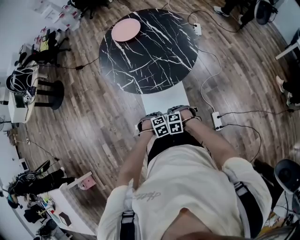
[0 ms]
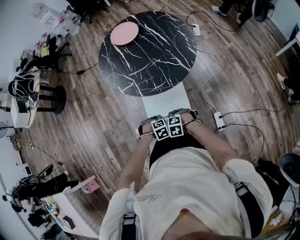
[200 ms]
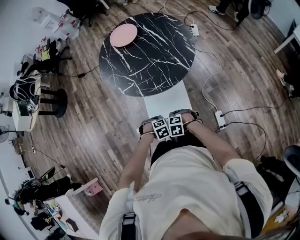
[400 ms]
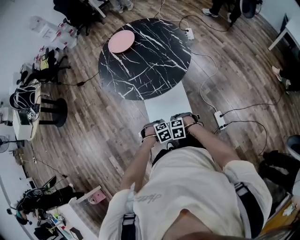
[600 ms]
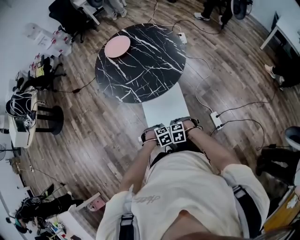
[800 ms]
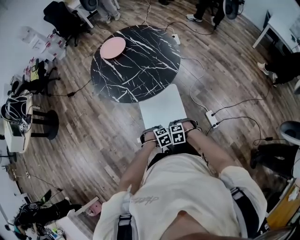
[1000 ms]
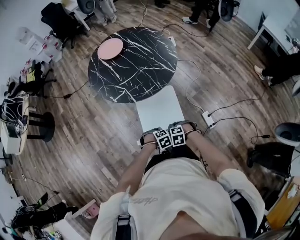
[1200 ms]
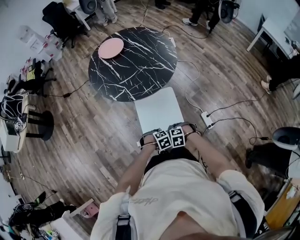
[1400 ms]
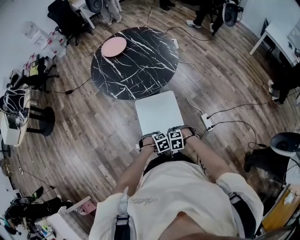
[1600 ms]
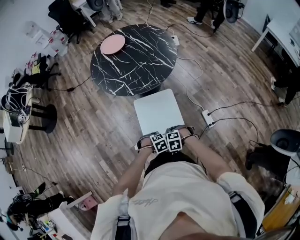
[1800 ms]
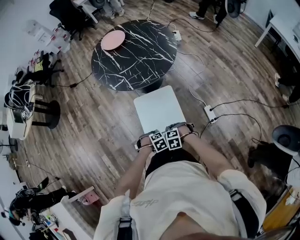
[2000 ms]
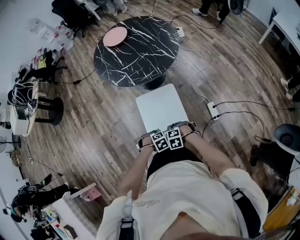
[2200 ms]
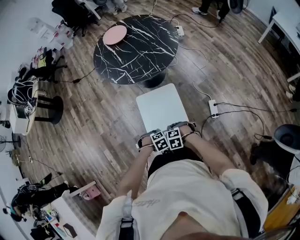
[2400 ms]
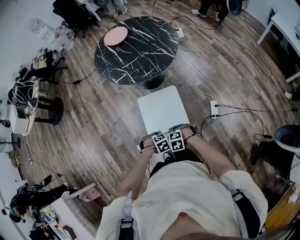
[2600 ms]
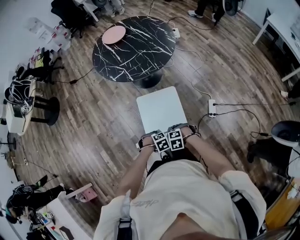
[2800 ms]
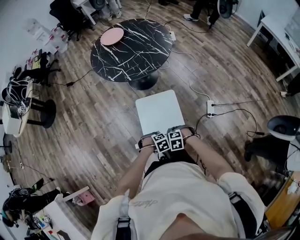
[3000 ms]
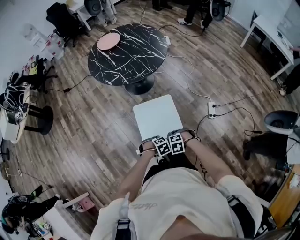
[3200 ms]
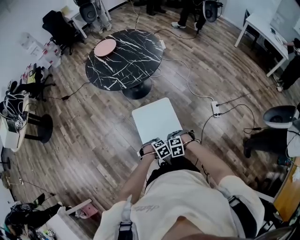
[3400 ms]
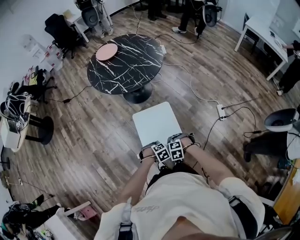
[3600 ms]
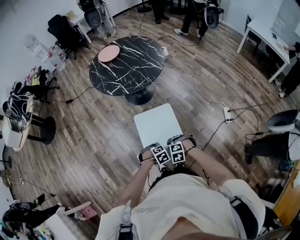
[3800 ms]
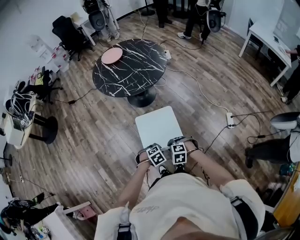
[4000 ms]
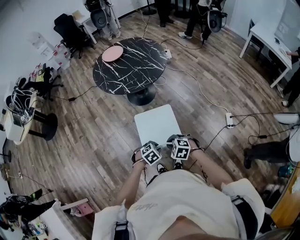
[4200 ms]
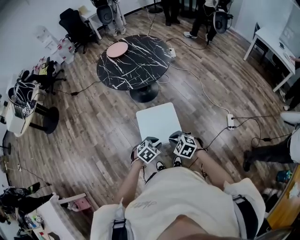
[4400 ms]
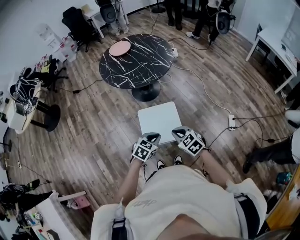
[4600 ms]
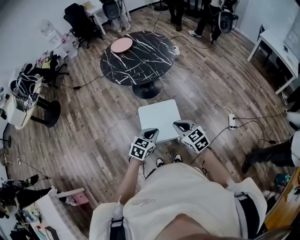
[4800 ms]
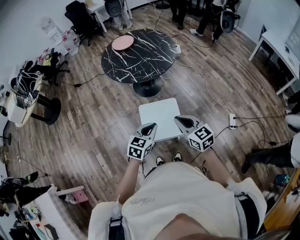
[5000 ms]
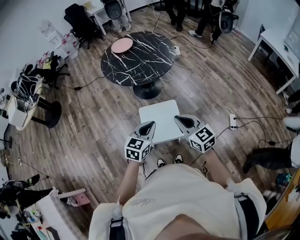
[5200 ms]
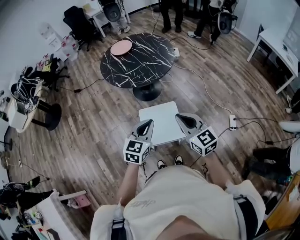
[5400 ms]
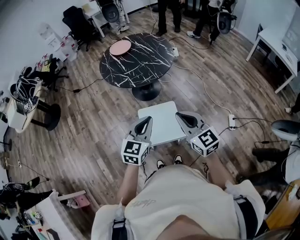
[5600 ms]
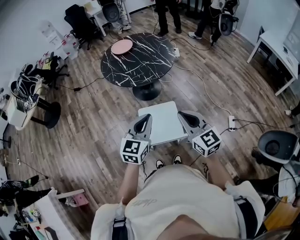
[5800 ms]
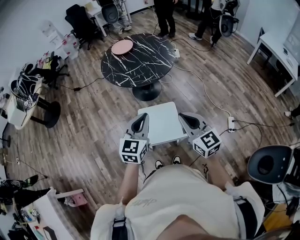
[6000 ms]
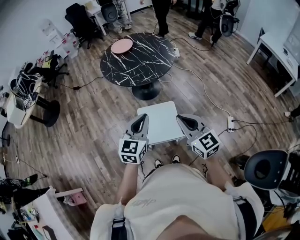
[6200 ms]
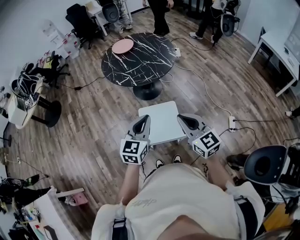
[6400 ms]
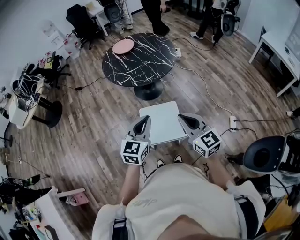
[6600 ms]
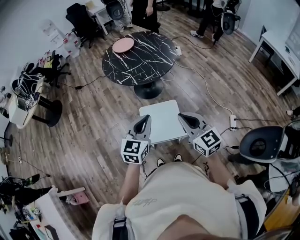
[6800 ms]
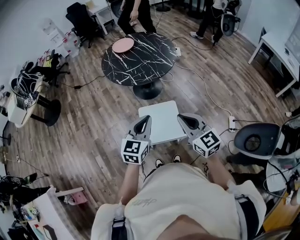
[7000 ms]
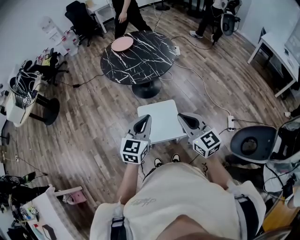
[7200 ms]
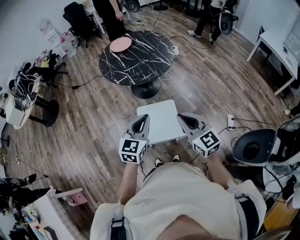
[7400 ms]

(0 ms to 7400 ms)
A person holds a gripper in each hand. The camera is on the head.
0 ms - 1400 ms: The left gripper shifts by some 15 cm, while the right gripper moves roughly 15 cm.
1400 ms - 3000 ms: The right gripper changes place by roughly 20 cm. The left gripper moves about 20 cm.
3000 ms - 4400 ms: Both grippers move upward, about 15 cm. The right gripper rotates about 30 degrees. The left gripper rotates approximately 30 degrees.
4400 ms - 6000 ms: The two grippers go roughly 25 cm upward. The left gripper tilts its fingers approximately 50 degrees upward; the right gripper angles its fingers upward, by about 50 degrees.
6000 ms - 7400 ms: The grippers stay close to where they were, moving slightly.

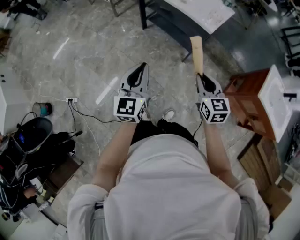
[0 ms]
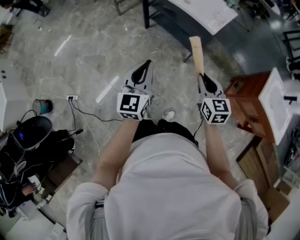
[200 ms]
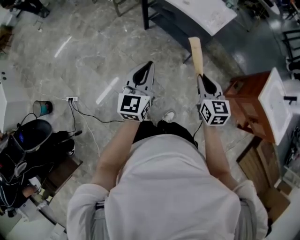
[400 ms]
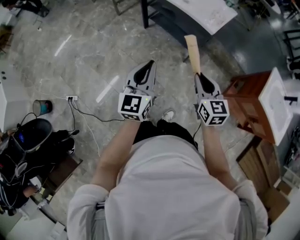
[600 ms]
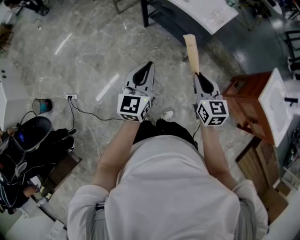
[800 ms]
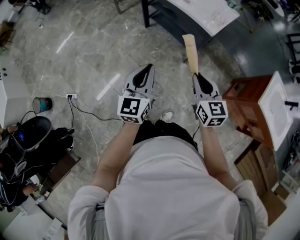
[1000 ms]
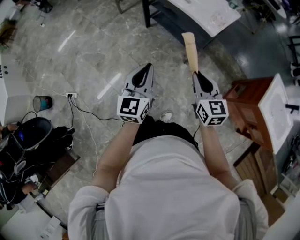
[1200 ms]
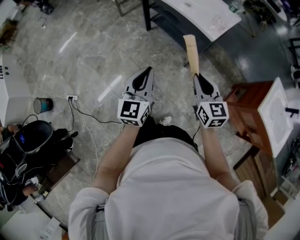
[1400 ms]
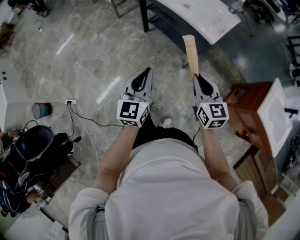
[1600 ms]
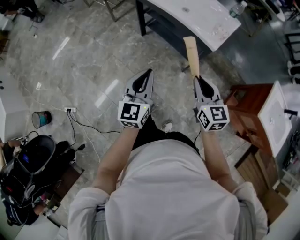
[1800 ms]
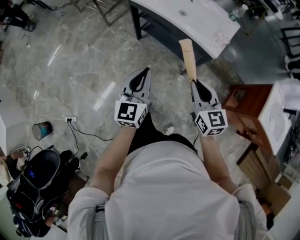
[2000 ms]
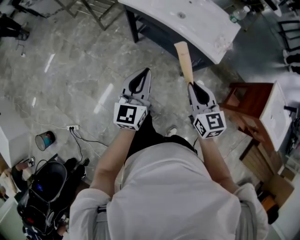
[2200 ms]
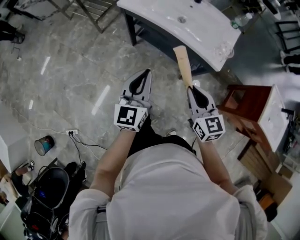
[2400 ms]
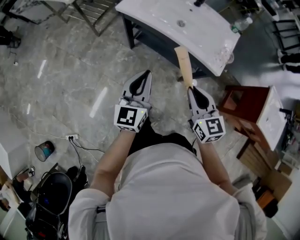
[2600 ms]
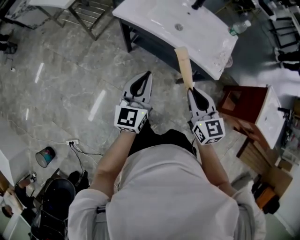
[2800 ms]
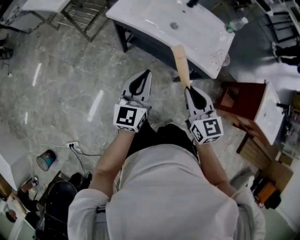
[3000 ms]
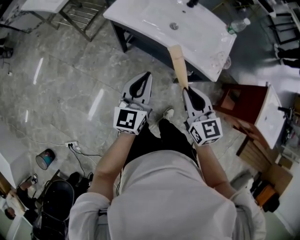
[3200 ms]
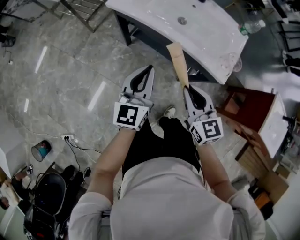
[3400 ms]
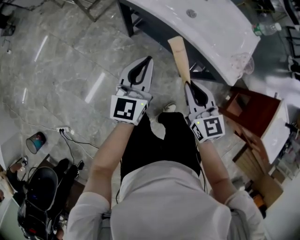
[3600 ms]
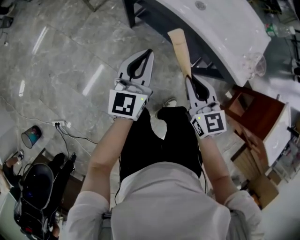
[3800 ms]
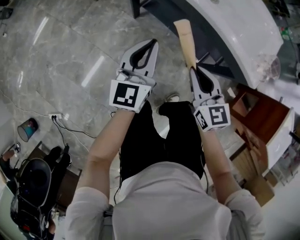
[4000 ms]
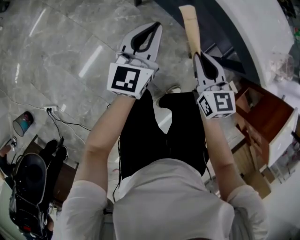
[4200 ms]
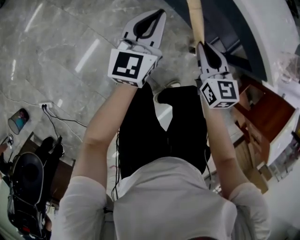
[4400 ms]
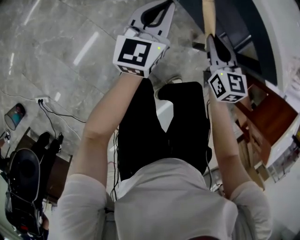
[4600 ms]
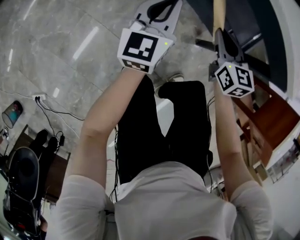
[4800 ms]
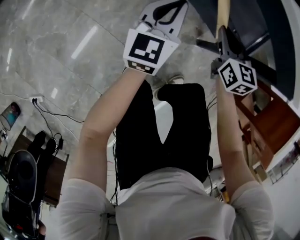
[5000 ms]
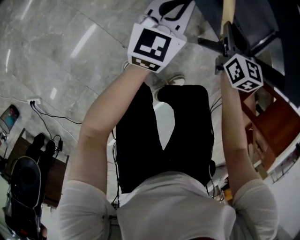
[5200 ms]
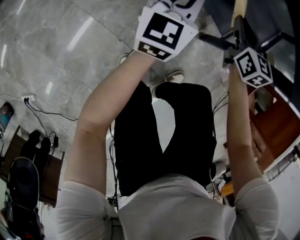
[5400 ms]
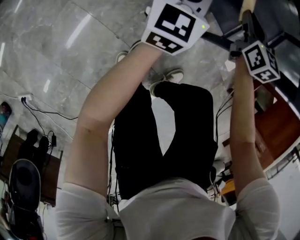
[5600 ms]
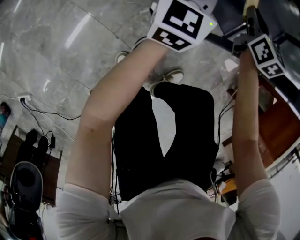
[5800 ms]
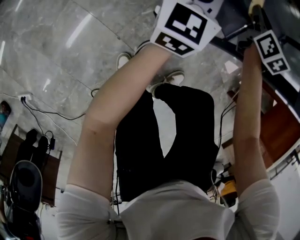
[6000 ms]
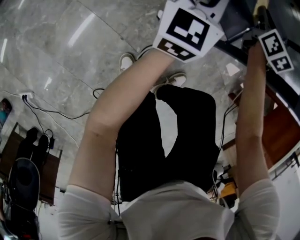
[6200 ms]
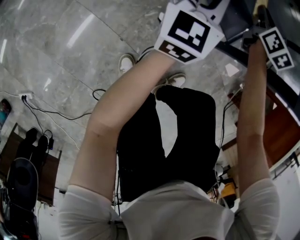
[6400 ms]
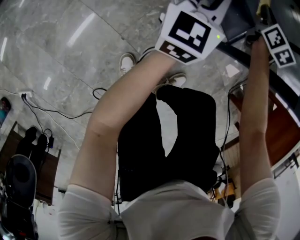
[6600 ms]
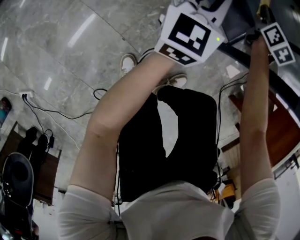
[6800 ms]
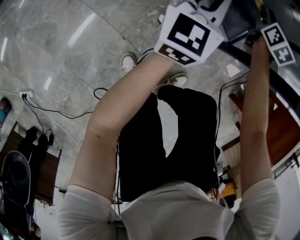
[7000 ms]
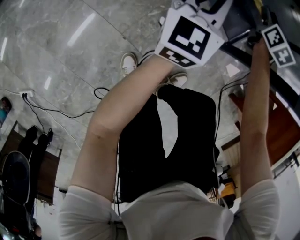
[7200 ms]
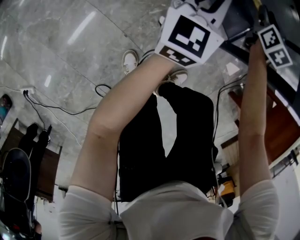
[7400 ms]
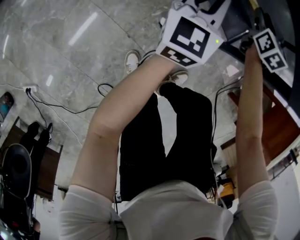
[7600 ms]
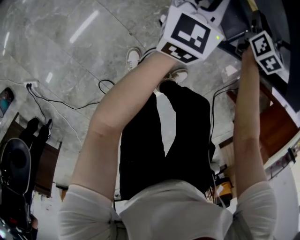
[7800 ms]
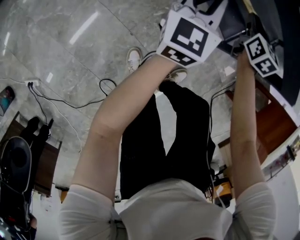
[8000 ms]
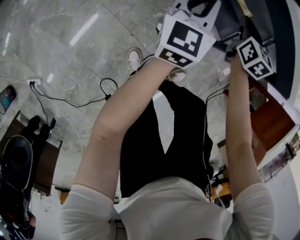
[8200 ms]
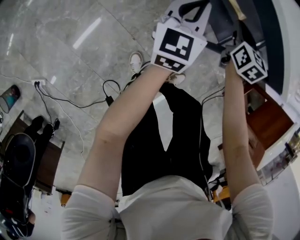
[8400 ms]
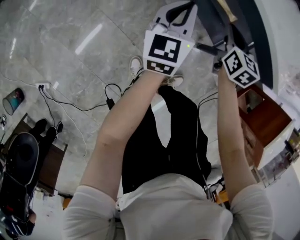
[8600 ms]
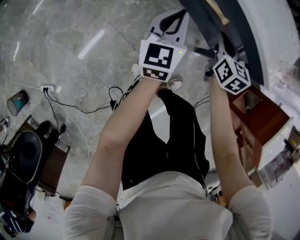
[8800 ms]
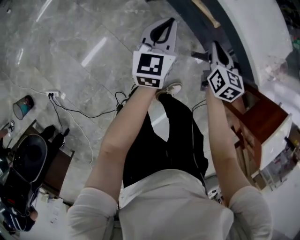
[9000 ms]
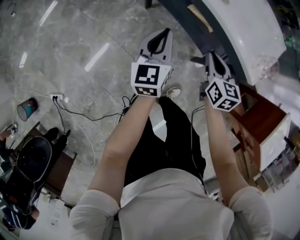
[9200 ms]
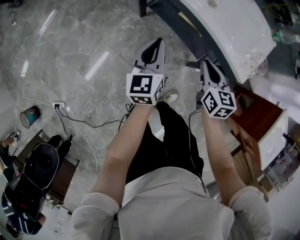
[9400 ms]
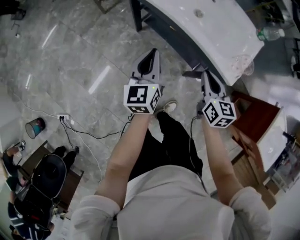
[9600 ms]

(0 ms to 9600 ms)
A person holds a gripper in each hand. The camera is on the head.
0 ms - 1600 ms: The two grippers go some 10 cm forward.
1600 ms - 3200 ms: The left gripper heads forward, covering approximately 30 cm, while the right gripper shifts roughly 25 cm forward and to the left.
3200 ms - 4800 ms: The two grippers go roughly 35 cm downward.
4800 ms - 6400 ms: The right gripper moves forward and downward, about 20 cm; the left gripper is displaced downward, to the right and forward by some 10 cm.
6400 ms - 8000 ms: The left gripper is displaced upward by some 5 cm. Meanwhile the right gripper moves backward and upward, some 10 cm, and opens, then closes again.
8000 ms - 9600 ms: The left gripper goes approximately 25 cm upward, while the right gripper heads upward and backward, covering some 30 cm.

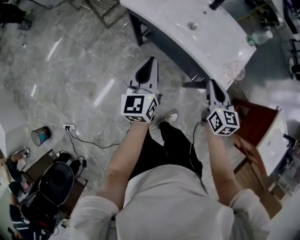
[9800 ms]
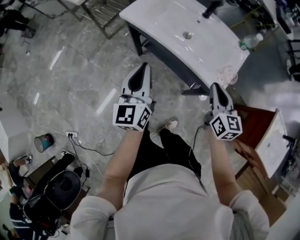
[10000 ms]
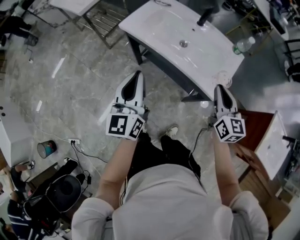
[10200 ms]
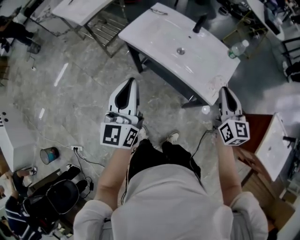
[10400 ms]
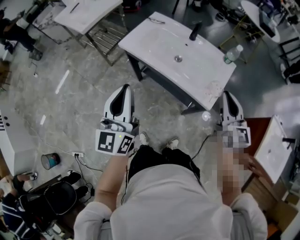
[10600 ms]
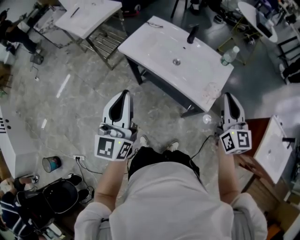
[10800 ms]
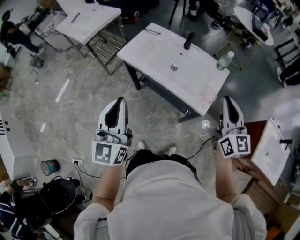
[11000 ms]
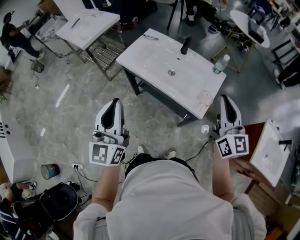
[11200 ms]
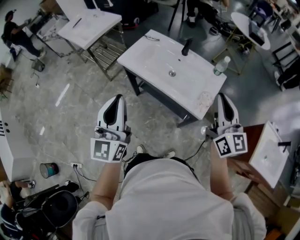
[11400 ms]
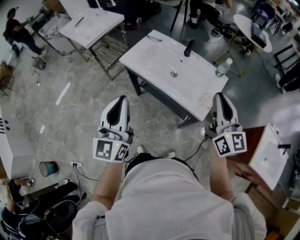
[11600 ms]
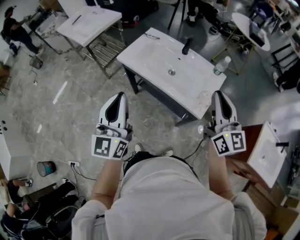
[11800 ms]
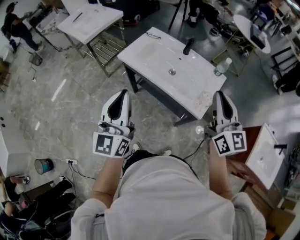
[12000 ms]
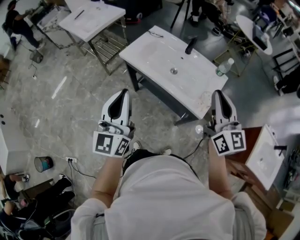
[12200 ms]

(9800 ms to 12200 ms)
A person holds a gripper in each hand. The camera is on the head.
9800 ms - 11000 ms: Both grippers travel together upward, approximately 25 cm. The left gripper rotates approximately 20 degrees, while the right gripper turns by some 30 degrees.
11000 ms - 12200 ms: The right gripper shifts roughly 5 cm to the left.

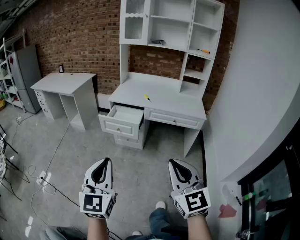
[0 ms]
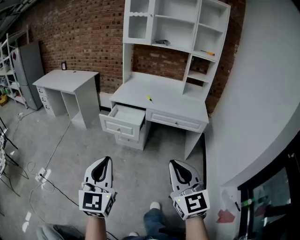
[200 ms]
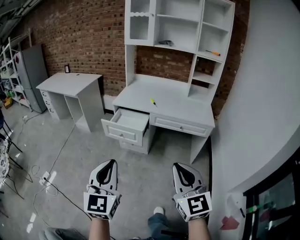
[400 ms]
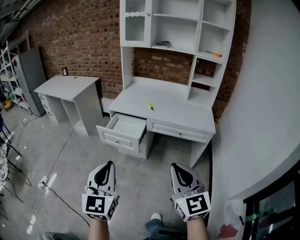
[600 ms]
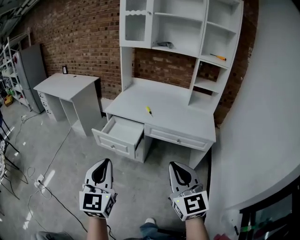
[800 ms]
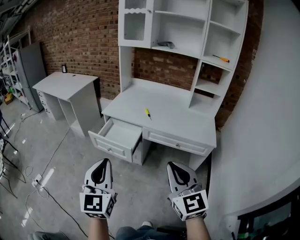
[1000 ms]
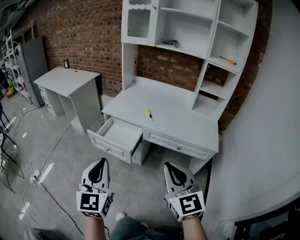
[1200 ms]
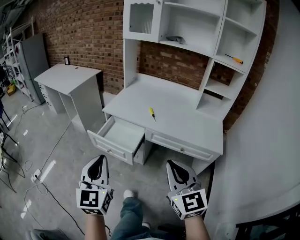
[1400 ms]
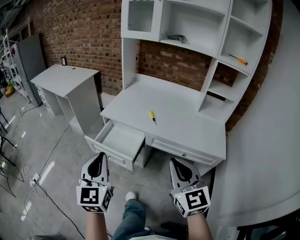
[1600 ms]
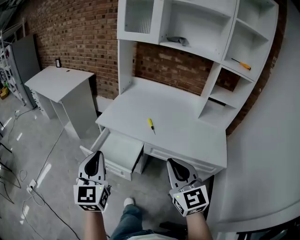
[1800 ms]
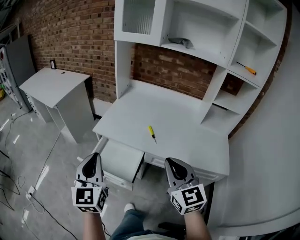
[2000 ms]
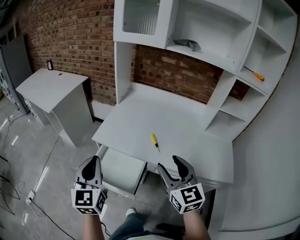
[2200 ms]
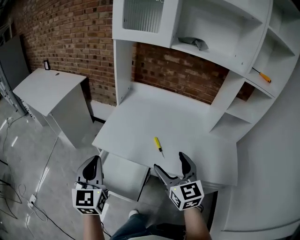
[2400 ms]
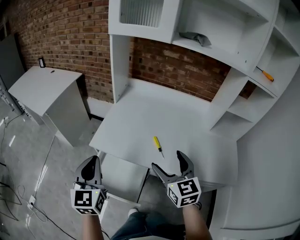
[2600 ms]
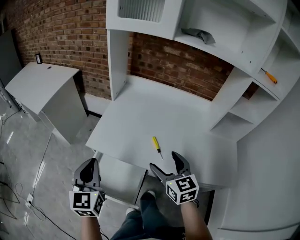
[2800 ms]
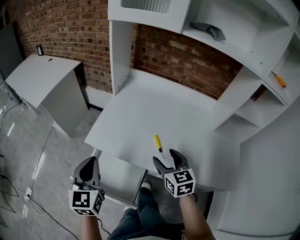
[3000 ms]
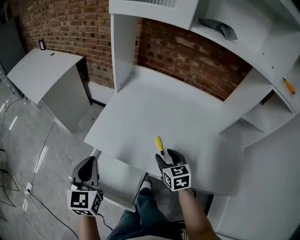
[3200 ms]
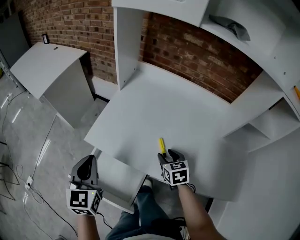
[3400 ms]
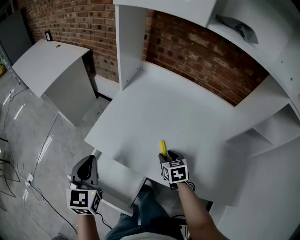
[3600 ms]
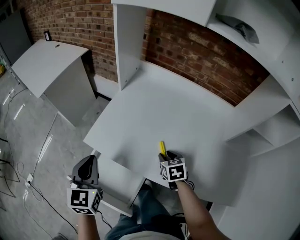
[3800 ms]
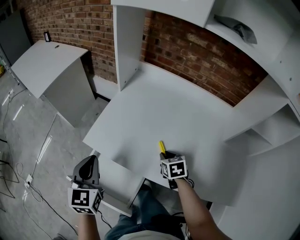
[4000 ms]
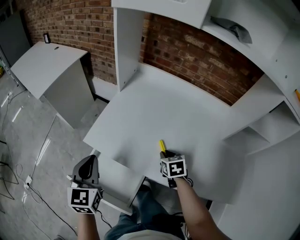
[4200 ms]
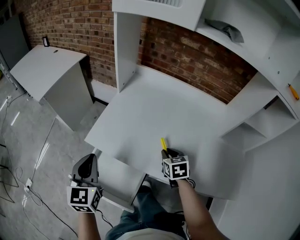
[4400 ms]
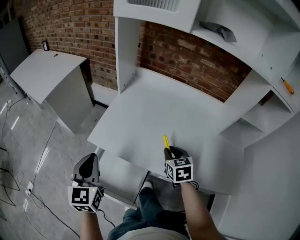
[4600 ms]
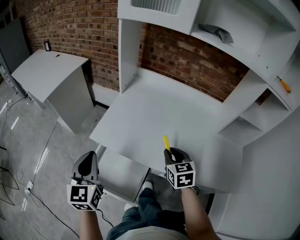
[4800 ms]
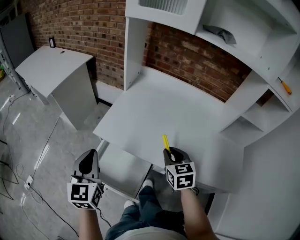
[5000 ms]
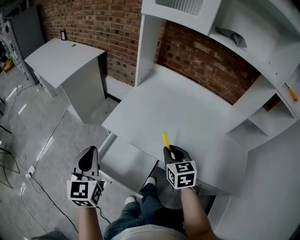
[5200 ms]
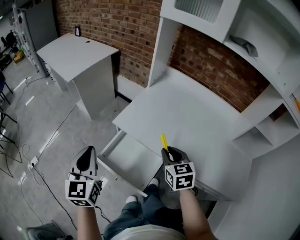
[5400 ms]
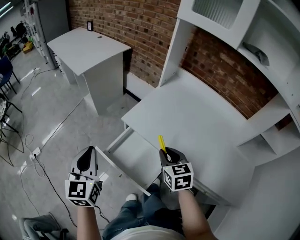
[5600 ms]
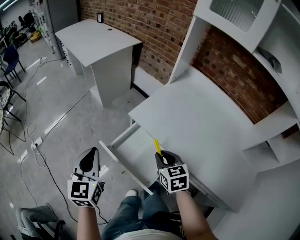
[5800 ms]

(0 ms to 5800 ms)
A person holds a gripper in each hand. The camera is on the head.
0 ms - 1400 ms: Both grippers travel together forward, roughly 35 cm.
1400 ms - 2800 ms: Both grippers are carried forward, some 40 cm. The right gripper turns by some 20 degrees, and opens up.
2800 ms - 4400 ms: The right gripper goes about 20 cm downward and forward, changes its angle by roughly 30 degrees, and closes its fingers. The left gripper travels forward by roughly 5 cm.
4400 ms - 5800 ms: Both grippers travel together to the left and backward, about 25 cm. The right gripper rotates approximately 30 degrees.
